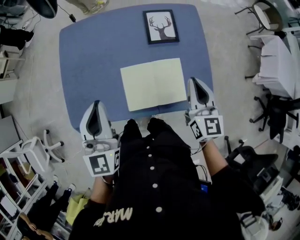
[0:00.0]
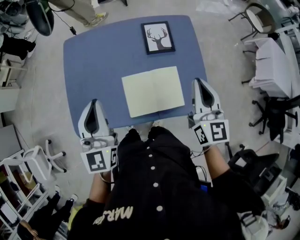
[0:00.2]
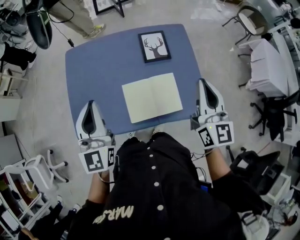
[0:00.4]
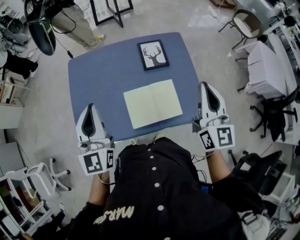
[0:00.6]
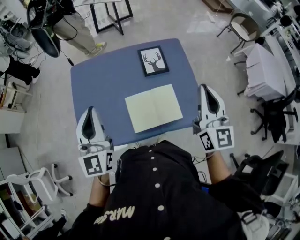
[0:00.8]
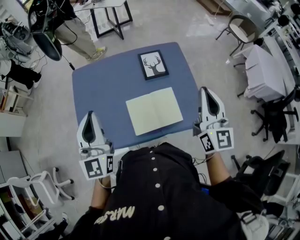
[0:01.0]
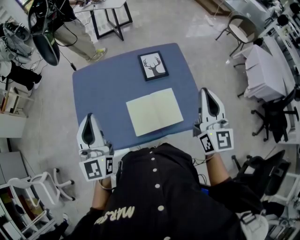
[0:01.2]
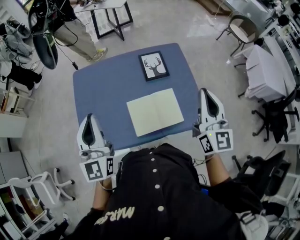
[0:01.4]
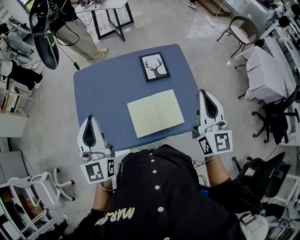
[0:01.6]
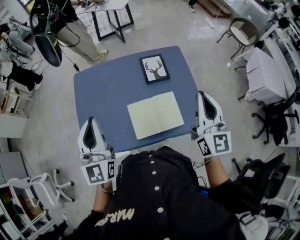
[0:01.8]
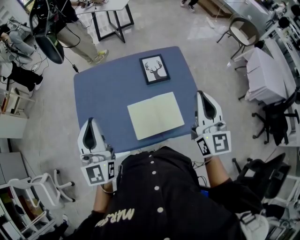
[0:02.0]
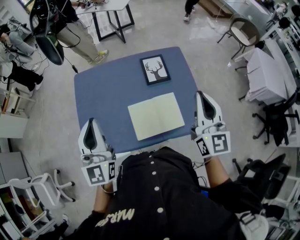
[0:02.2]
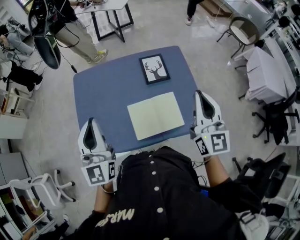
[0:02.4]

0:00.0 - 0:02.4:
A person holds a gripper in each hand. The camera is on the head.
0:00.0 - 0:01.2: The left gripper heads upward and to the left, covering some 15 cm. The right gripper moves upward, about 20 cm, and swivels some 20 degrees.
0:01.2 - 0:02.4: The grippers make only small movements.

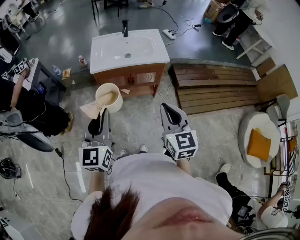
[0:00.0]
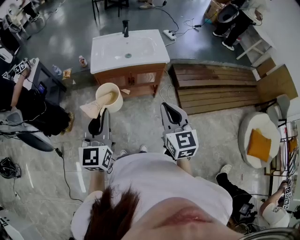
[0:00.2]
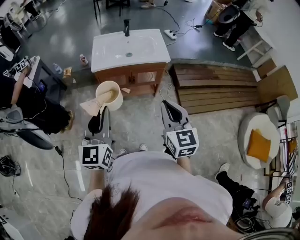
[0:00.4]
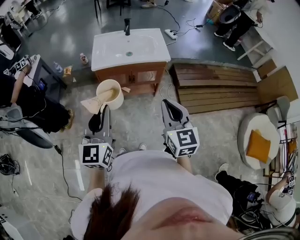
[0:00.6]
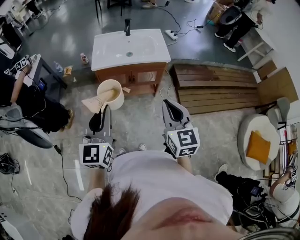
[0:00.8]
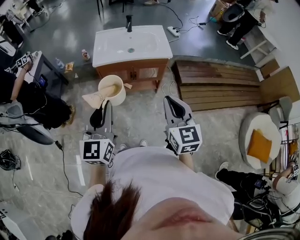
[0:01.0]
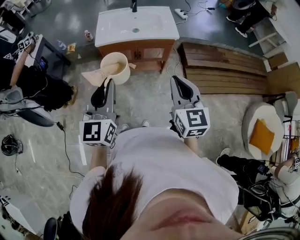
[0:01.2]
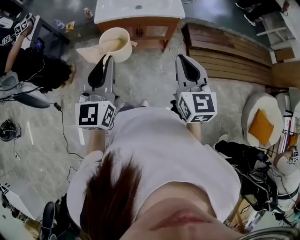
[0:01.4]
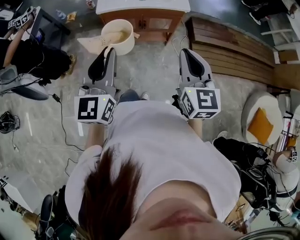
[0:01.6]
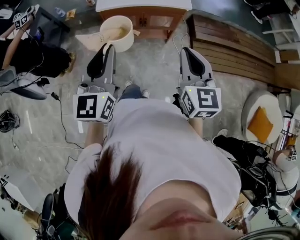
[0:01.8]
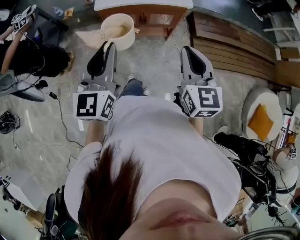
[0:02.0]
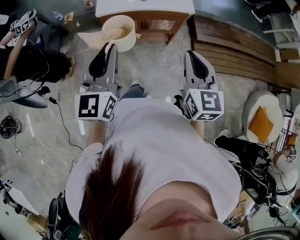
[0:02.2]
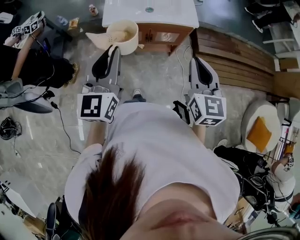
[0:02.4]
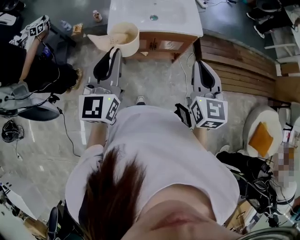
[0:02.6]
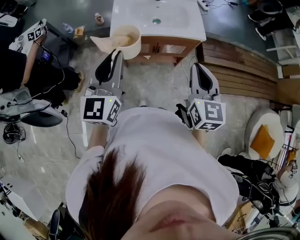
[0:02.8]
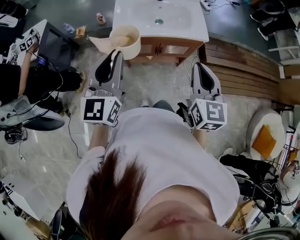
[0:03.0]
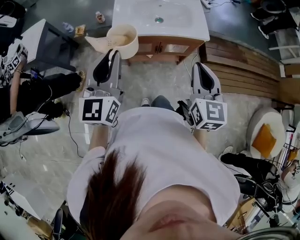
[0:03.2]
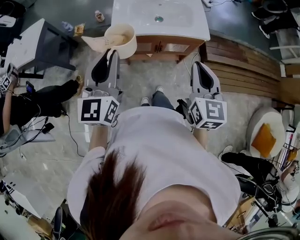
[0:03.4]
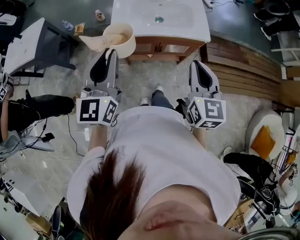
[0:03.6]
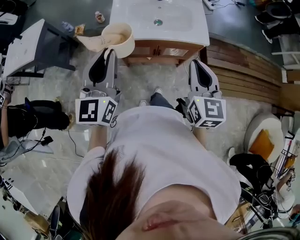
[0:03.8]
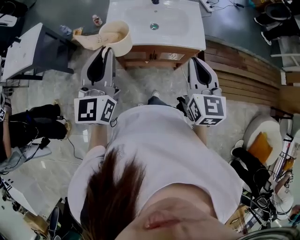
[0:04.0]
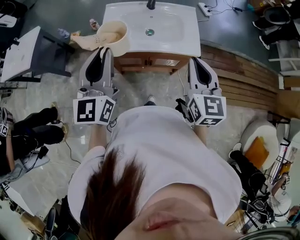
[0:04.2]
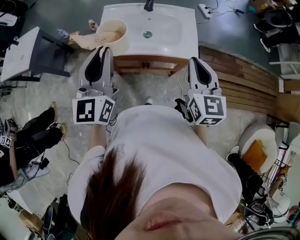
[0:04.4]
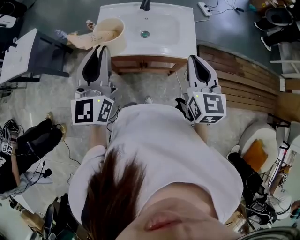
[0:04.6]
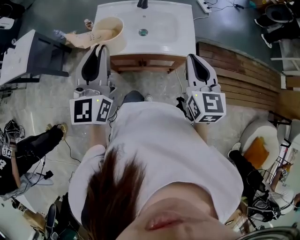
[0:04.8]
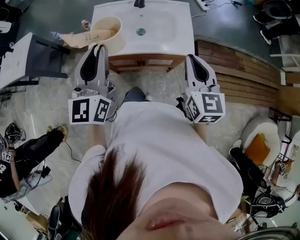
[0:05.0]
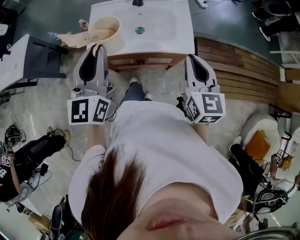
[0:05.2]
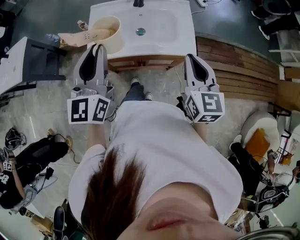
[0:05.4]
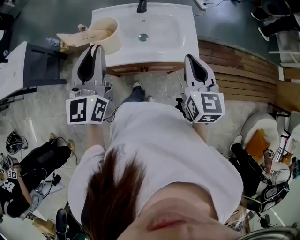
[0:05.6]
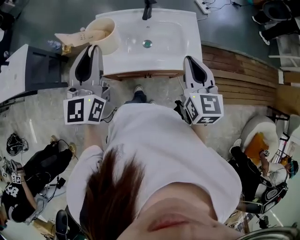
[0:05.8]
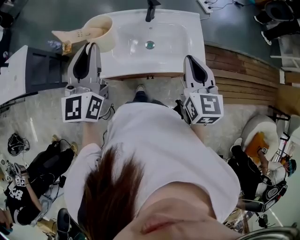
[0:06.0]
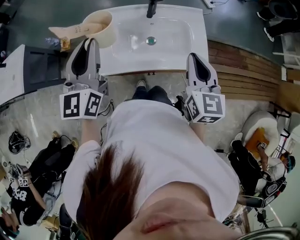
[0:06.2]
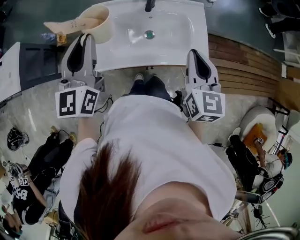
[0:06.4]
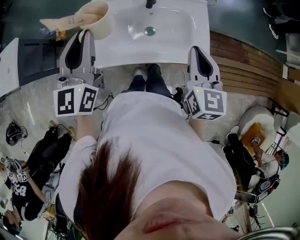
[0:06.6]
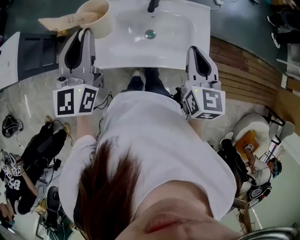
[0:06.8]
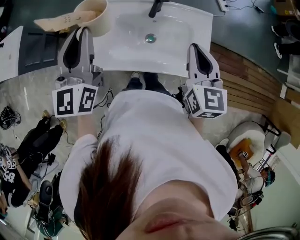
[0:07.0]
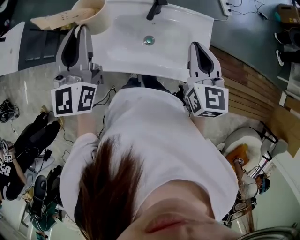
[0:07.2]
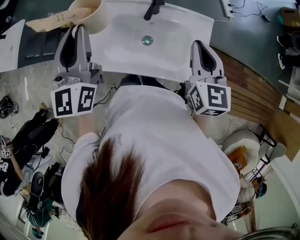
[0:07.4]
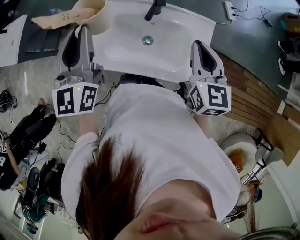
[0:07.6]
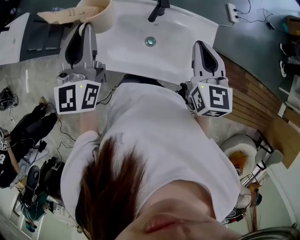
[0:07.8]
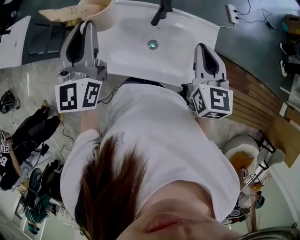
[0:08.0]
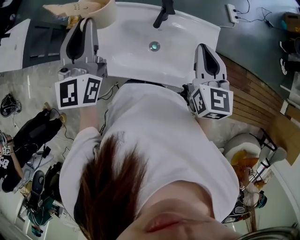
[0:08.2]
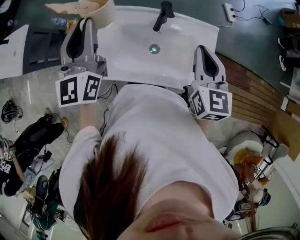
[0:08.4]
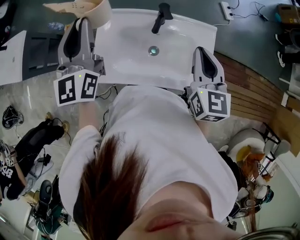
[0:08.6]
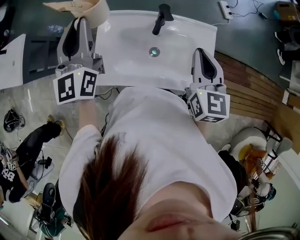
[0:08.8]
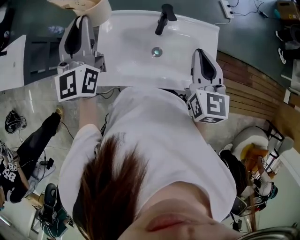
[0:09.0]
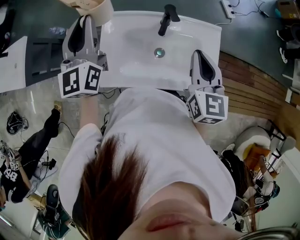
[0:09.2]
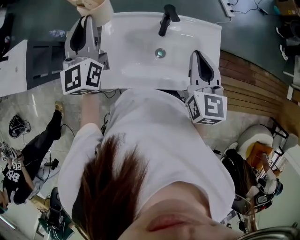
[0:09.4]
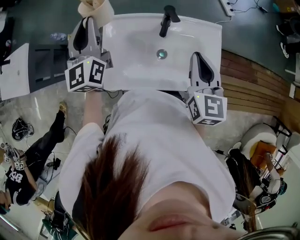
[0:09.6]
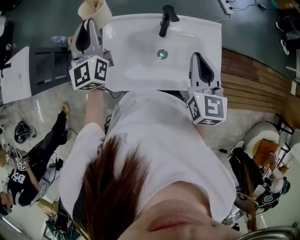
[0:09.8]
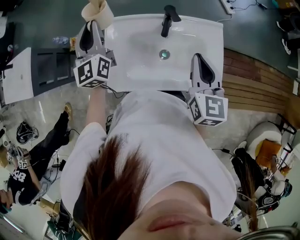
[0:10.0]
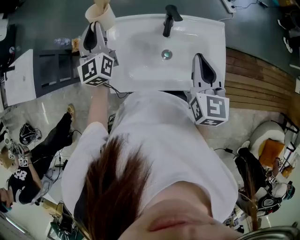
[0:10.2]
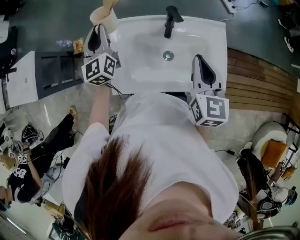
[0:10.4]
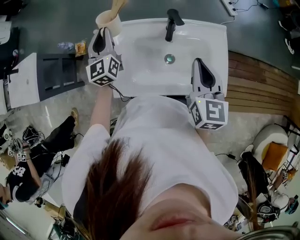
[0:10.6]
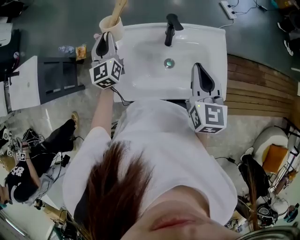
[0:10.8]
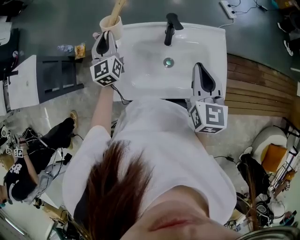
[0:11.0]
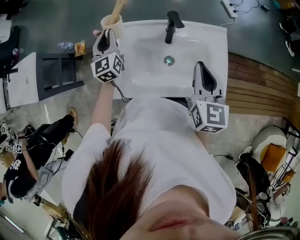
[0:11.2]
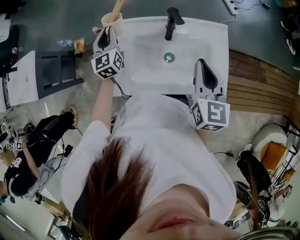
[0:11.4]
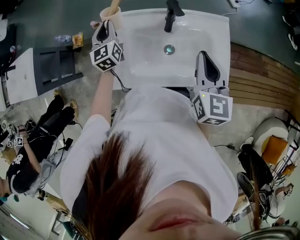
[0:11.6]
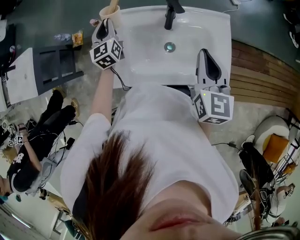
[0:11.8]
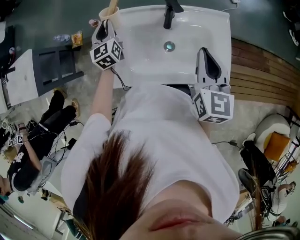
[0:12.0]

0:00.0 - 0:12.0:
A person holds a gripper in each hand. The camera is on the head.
0:00.0 - 0:01.6: The grippers move only a little.
0:01.6 - 0:03.0: The right gripper goes some 15 cm forward, while the left gripper travels forward and to the left by about 20 cm.
0:03.0 - 0:04.4: Both grippers travel together forward and to the right, roughly 15 cm.
0:04.4 - 0:06.0: Both grippers move forward, about 15 cm.
0:06.0 - 0:07.6: The right gripper moves forward and to the right, about 15 cm; the left gripper moves forward, some 5 cm.
0:07.6 - 0:09.0: The left gripper moves forward and to the left, about 10 cm.
0:09.0 - 0:10.4: The left gripper shifts roughly 15 cm downward and forward.
0:10.4 - 0:12.0: The left gripper travels downward by roughly 10 cm.

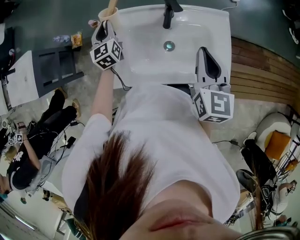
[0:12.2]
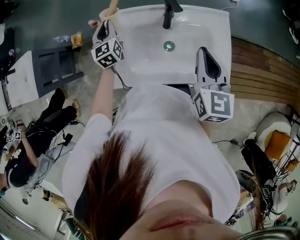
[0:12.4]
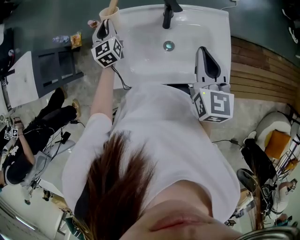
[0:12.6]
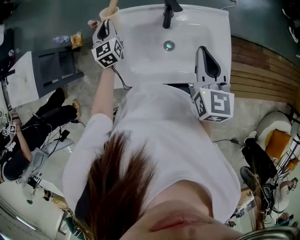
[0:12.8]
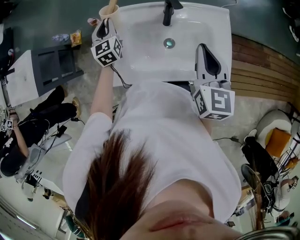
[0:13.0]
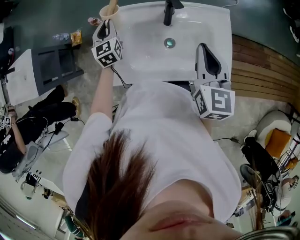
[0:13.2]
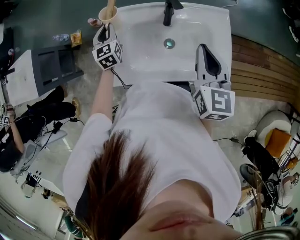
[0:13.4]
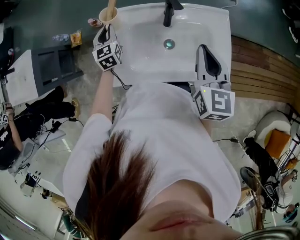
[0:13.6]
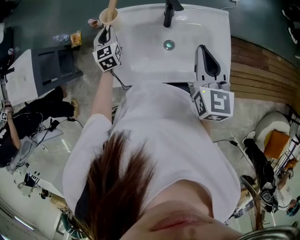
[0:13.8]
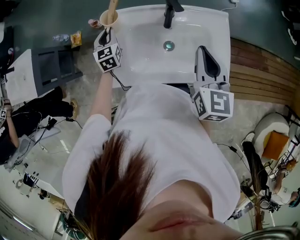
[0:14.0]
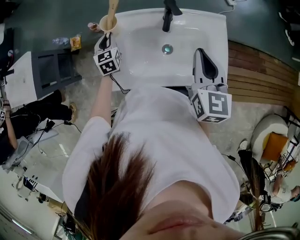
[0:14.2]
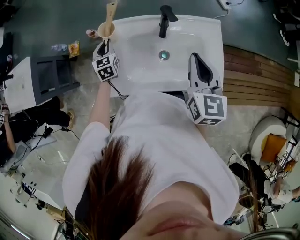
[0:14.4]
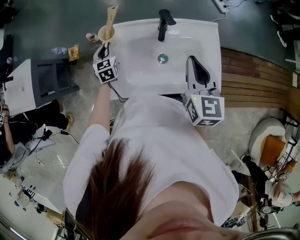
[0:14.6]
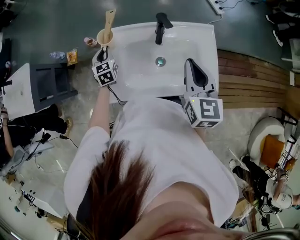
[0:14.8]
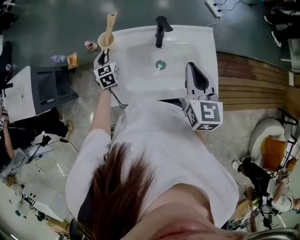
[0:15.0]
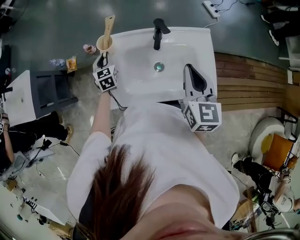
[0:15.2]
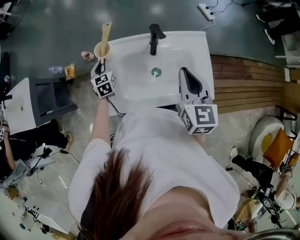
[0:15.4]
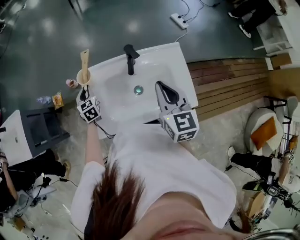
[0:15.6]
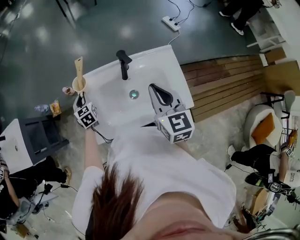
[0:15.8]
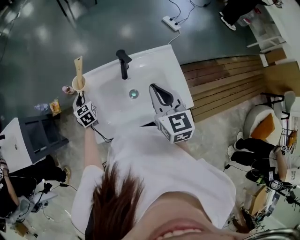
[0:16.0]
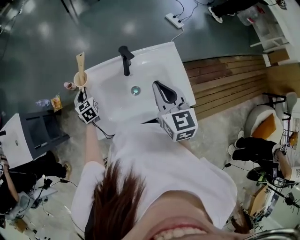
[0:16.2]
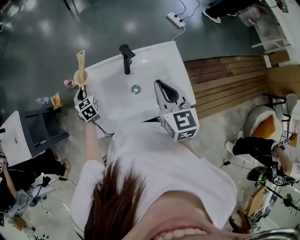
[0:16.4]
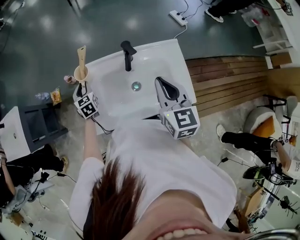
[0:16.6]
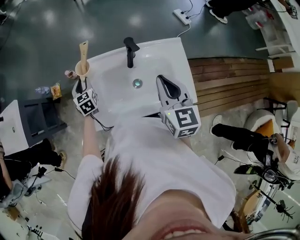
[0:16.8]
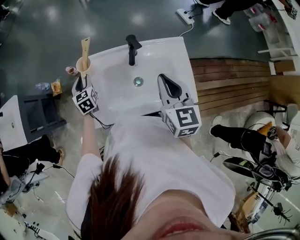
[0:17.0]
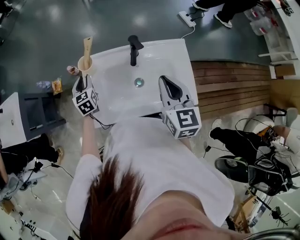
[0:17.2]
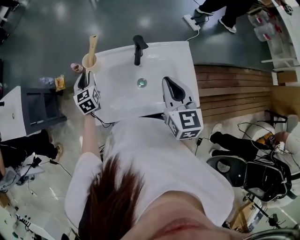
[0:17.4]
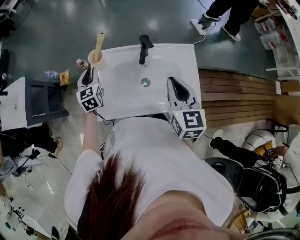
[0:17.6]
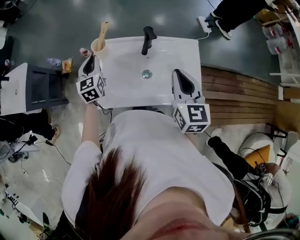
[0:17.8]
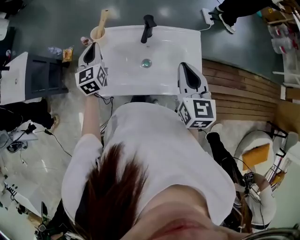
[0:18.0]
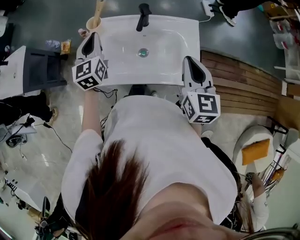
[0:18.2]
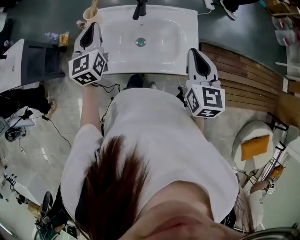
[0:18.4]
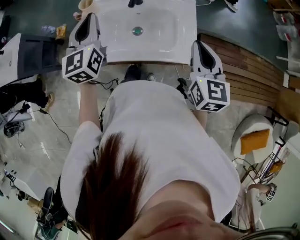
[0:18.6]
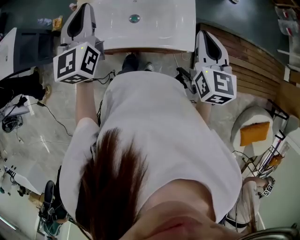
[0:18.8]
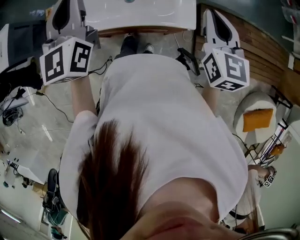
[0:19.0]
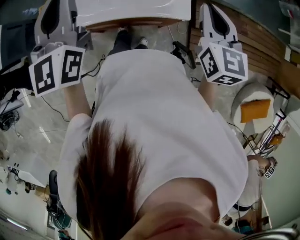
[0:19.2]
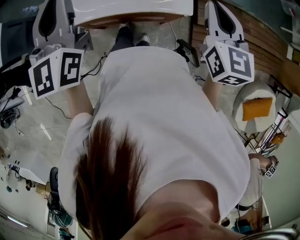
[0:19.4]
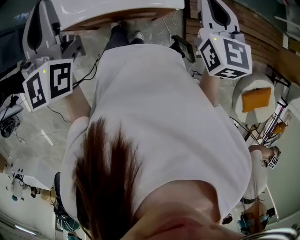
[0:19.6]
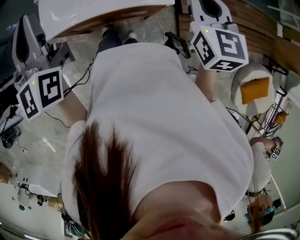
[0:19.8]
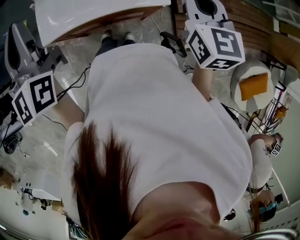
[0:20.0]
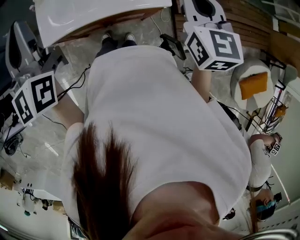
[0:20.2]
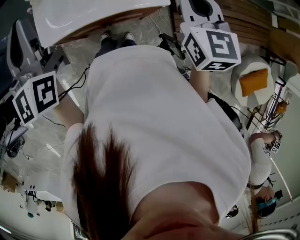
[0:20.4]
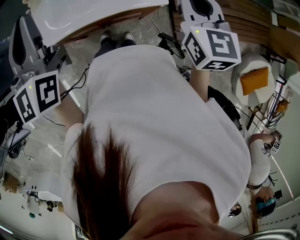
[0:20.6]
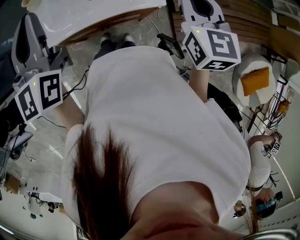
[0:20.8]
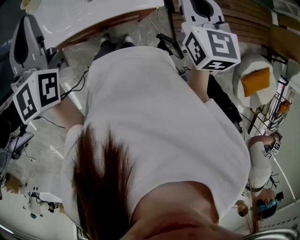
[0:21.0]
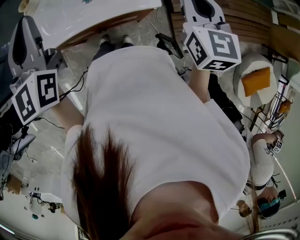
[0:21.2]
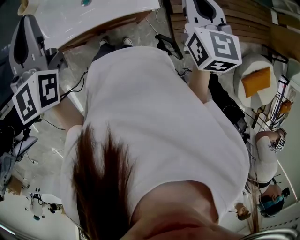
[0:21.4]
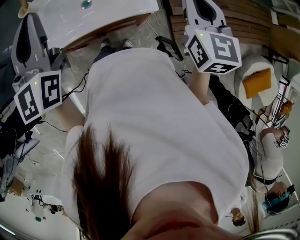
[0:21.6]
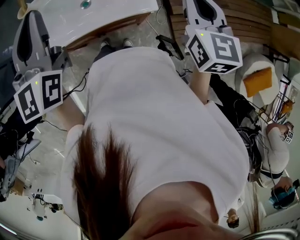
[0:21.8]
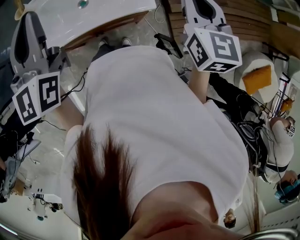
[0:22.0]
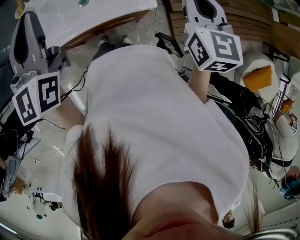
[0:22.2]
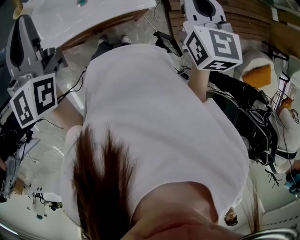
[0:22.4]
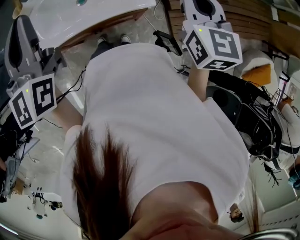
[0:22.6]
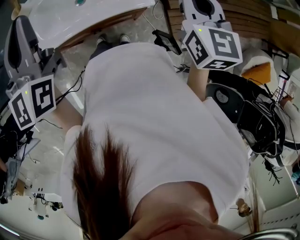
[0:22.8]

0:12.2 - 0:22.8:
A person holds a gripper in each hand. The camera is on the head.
0:12.2 - 0:13.8: There are only small adjustments of the grippers.
0:13.8 - 0:16.8: The grippers stay close to where they were, moving slightly.
0:16.8 - 0:18.2: The left gripper heads upward, backward and to the right, covering about 20 cm, turns by some 20 degrees, and closes its fingers, while the right gripper goes some 10 cm to the right and backward.
0:18.2 - 0:19.8: The right gripper shifts about 15 cm backward and to the right. The left gripper travels backward and upward by approximately 25 cm.
0:19.8 - 0:21.2: The left gripper changes place by approximately 5 cm.
0:21.2 - 0:22.8: The grippers make only small movements.
